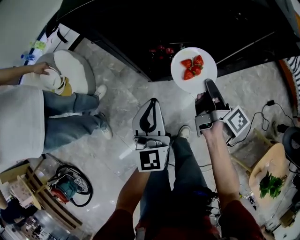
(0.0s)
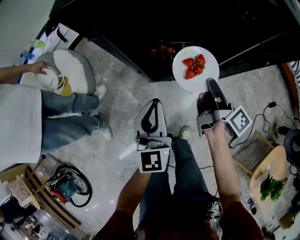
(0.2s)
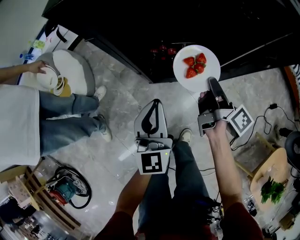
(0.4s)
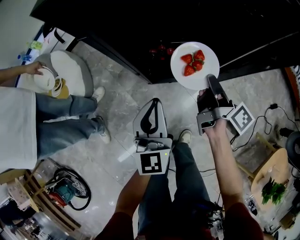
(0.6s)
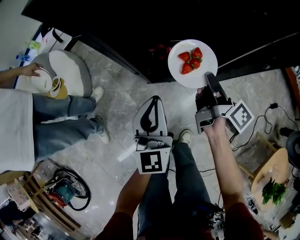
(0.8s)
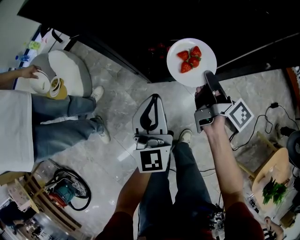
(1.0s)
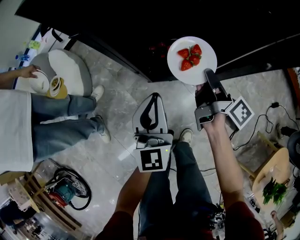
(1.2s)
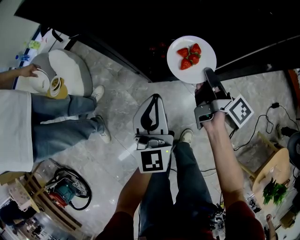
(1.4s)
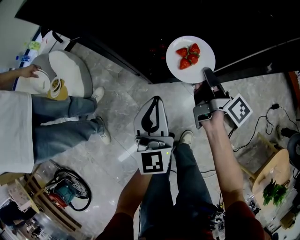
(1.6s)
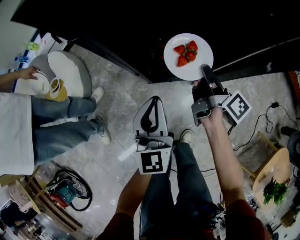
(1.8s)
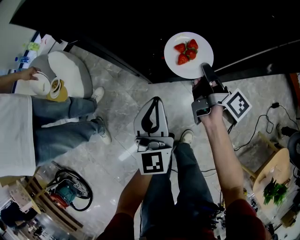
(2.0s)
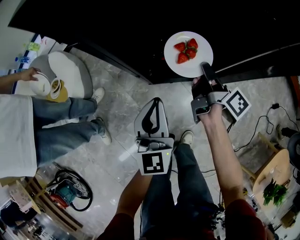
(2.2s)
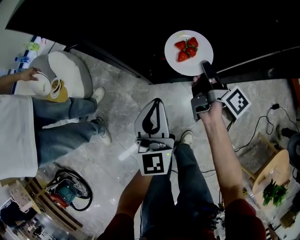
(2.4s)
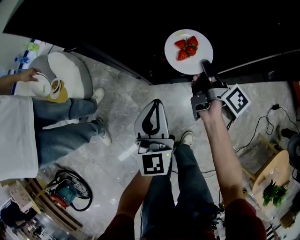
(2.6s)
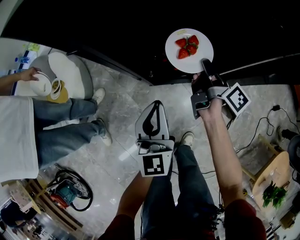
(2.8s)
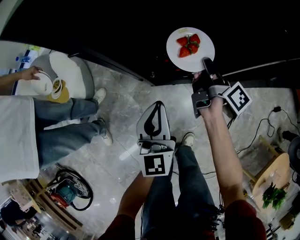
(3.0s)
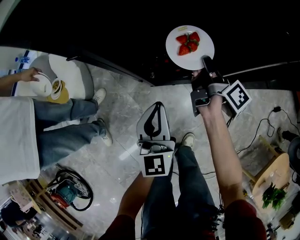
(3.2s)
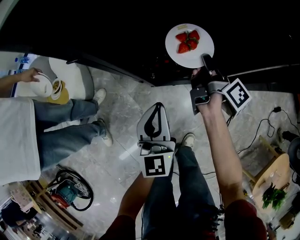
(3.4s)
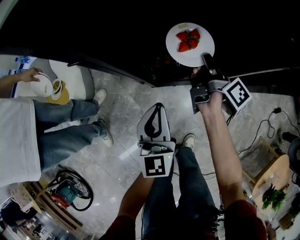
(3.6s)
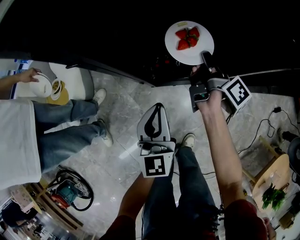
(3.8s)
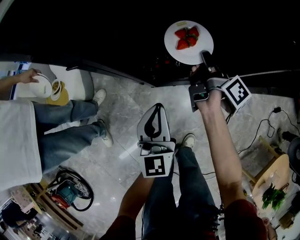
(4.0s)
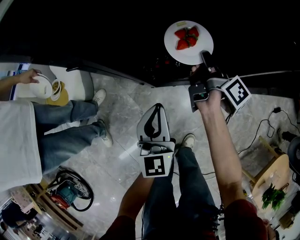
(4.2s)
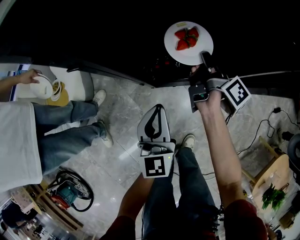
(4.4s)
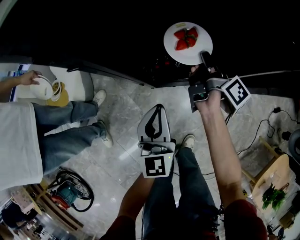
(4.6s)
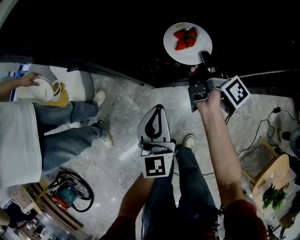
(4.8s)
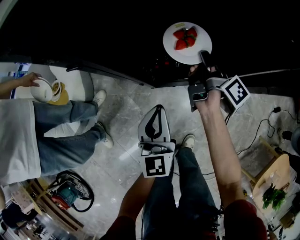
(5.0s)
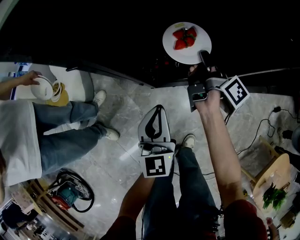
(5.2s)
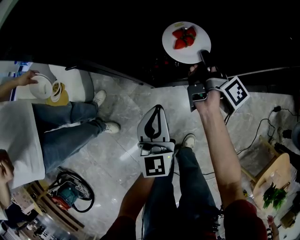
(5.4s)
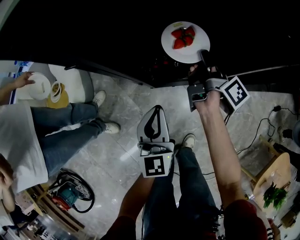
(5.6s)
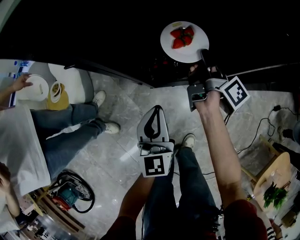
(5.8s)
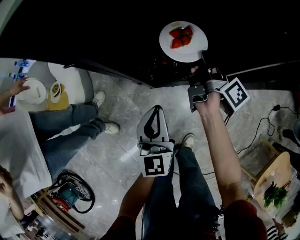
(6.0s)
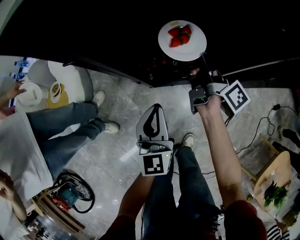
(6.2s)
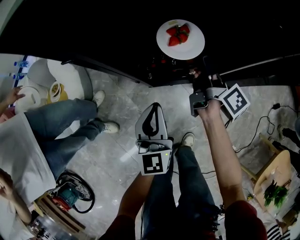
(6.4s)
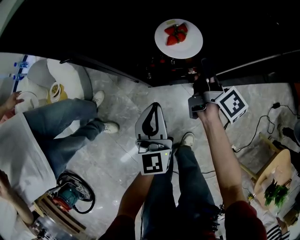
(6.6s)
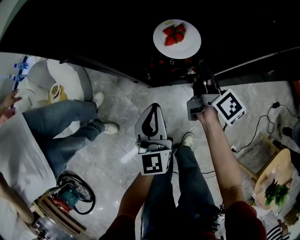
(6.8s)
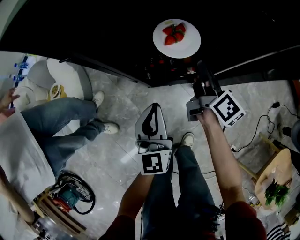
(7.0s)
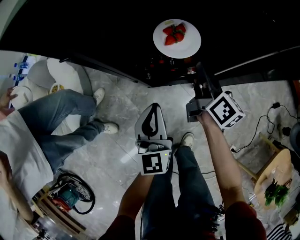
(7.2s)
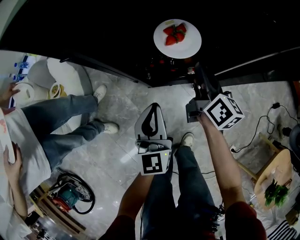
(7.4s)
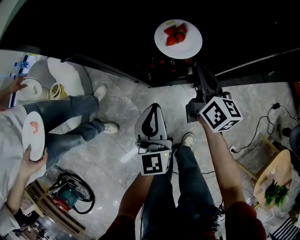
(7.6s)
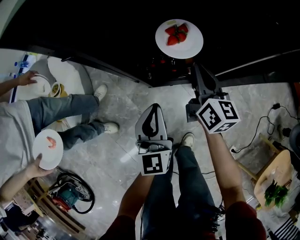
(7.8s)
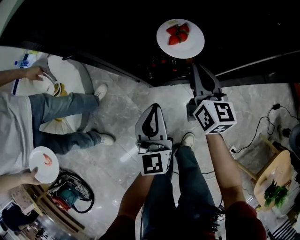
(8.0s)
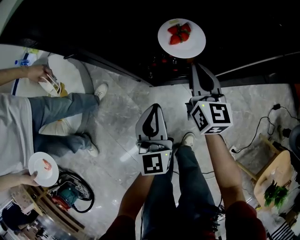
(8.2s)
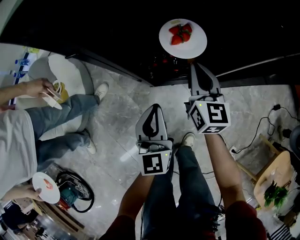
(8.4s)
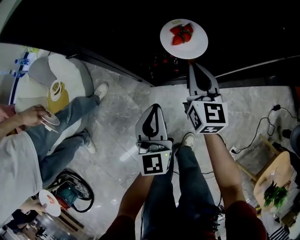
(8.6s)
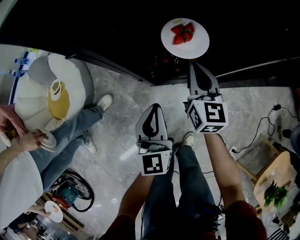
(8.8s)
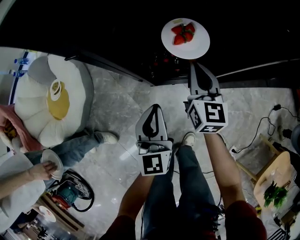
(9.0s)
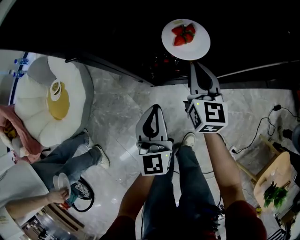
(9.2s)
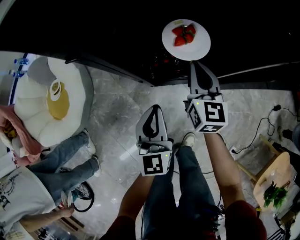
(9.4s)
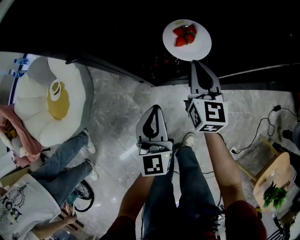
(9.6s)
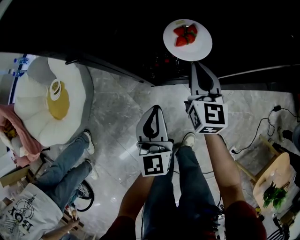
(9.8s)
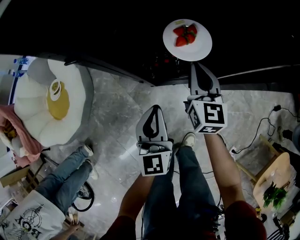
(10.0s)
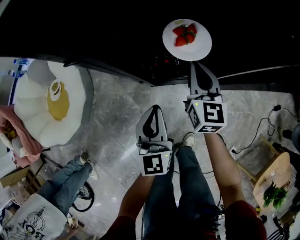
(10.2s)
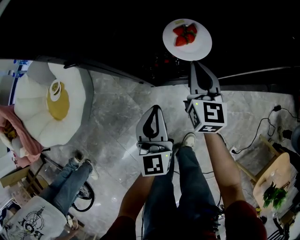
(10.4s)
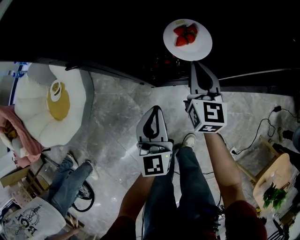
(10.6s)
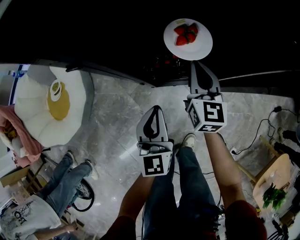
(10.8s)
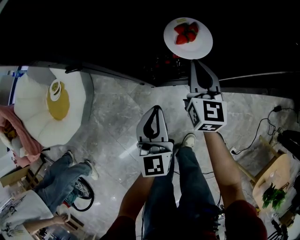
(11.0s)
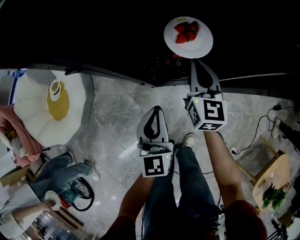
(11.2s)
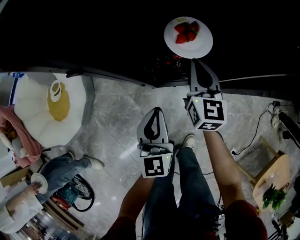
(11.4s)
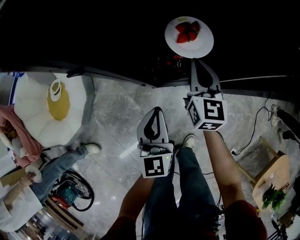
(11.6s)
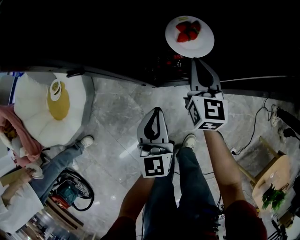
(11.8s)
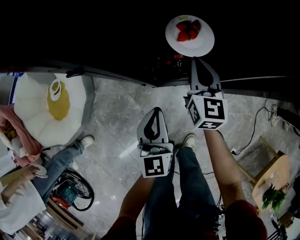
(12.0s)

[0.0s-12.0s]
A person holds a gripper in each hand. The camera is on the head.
0.0s to 1.6s: The left gripper shifts by roughly 5 cm, while the right gripper is displaced forward by some 5 cm.
1.6s to 3.0s: The right gripper travels forward by some 5 cm.
3.0s to 6.0s: The grippers move only a little.
6.0s to 7.6s: The right gripper shifts about 5 cm backward, and twists about 50 degrees counterclockwise, seen from behind.
7.6s to 9.0s: The right gripper rotates about 30 degrees.
9.0s to 10.4s: Both grippers stay put.
10.4s to 12.0s: The grippers stay close to where they were, moving slightly.

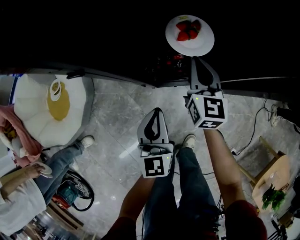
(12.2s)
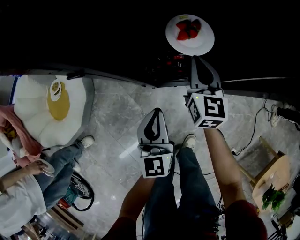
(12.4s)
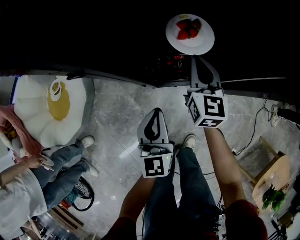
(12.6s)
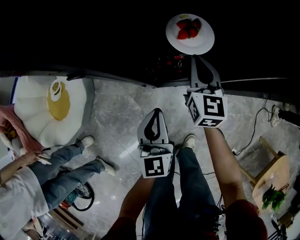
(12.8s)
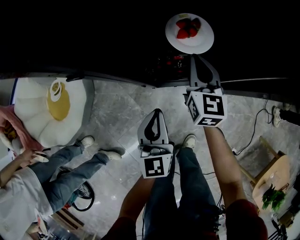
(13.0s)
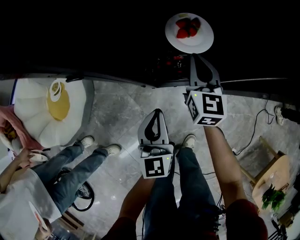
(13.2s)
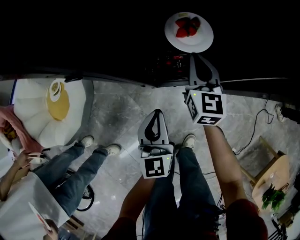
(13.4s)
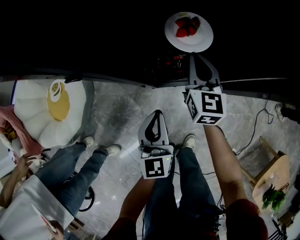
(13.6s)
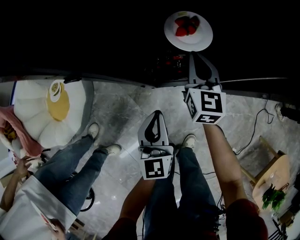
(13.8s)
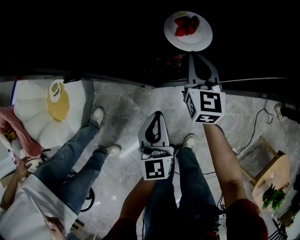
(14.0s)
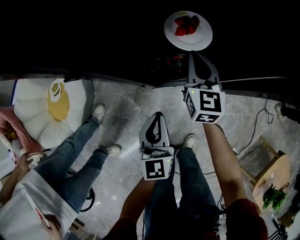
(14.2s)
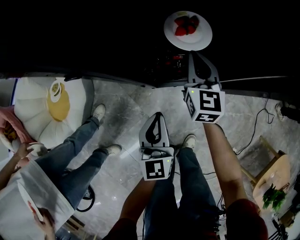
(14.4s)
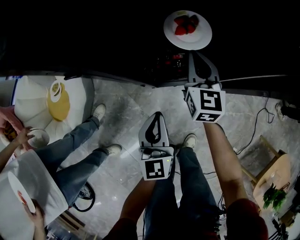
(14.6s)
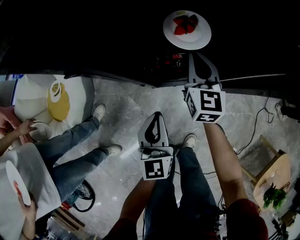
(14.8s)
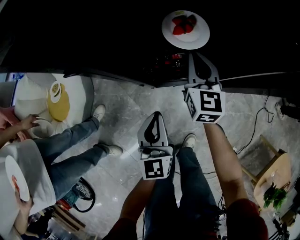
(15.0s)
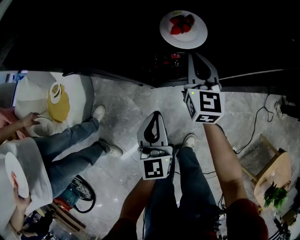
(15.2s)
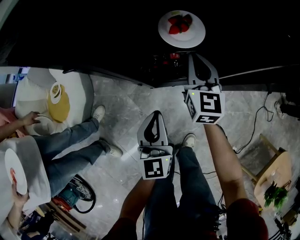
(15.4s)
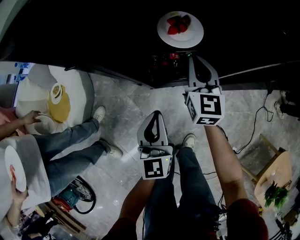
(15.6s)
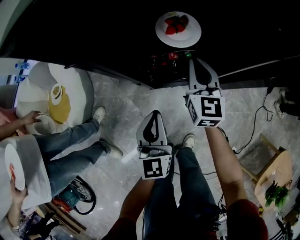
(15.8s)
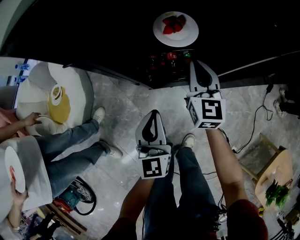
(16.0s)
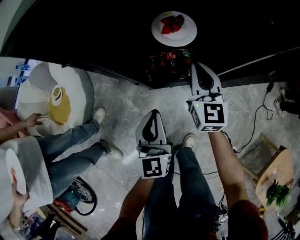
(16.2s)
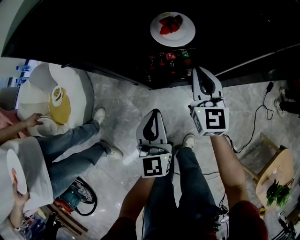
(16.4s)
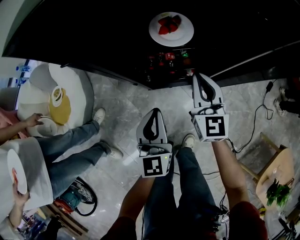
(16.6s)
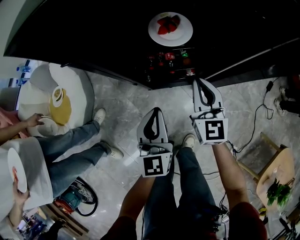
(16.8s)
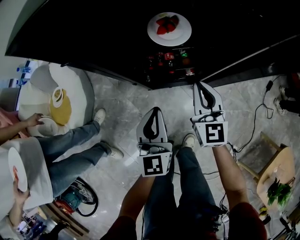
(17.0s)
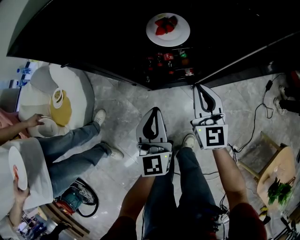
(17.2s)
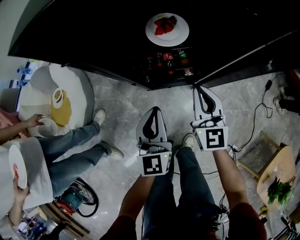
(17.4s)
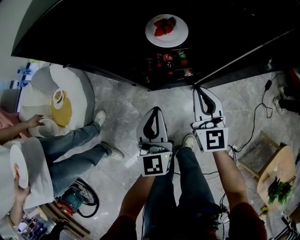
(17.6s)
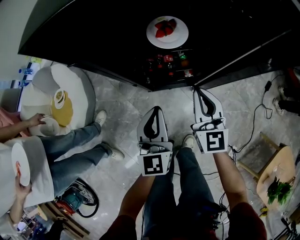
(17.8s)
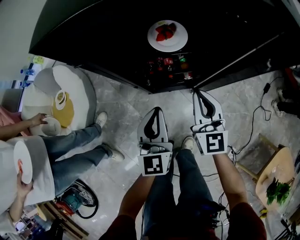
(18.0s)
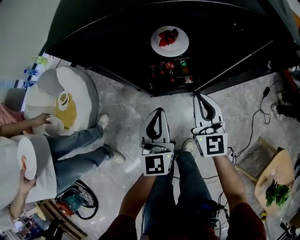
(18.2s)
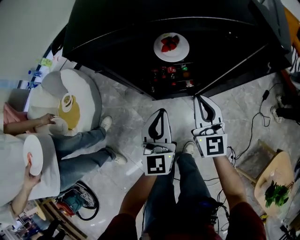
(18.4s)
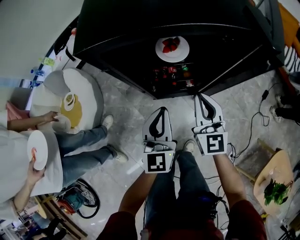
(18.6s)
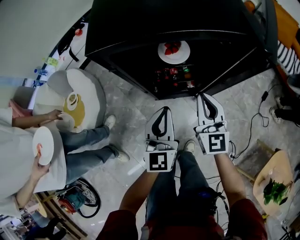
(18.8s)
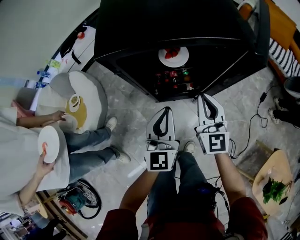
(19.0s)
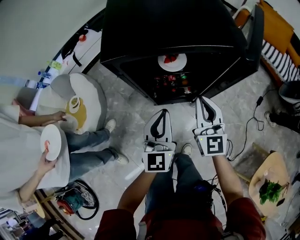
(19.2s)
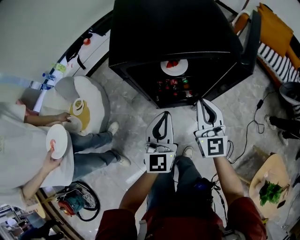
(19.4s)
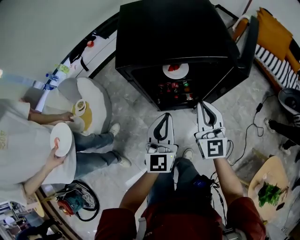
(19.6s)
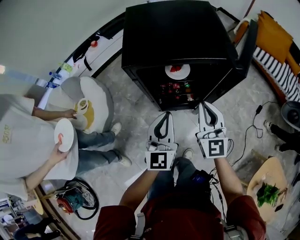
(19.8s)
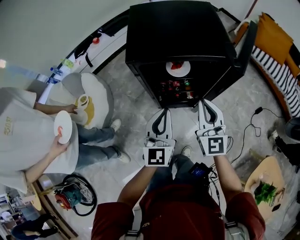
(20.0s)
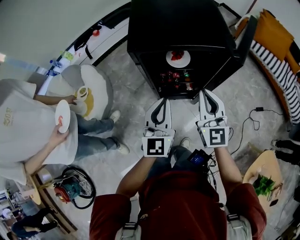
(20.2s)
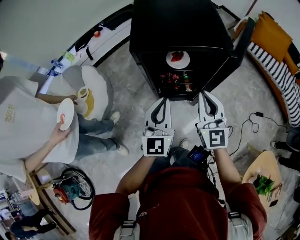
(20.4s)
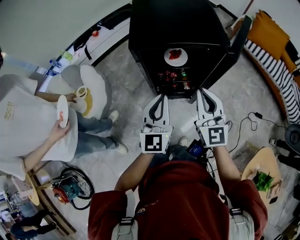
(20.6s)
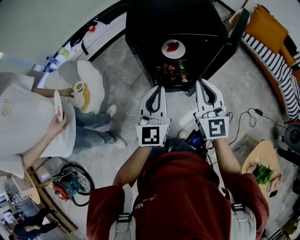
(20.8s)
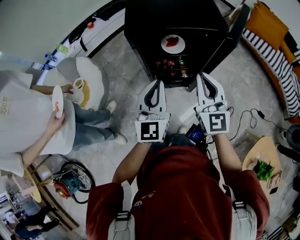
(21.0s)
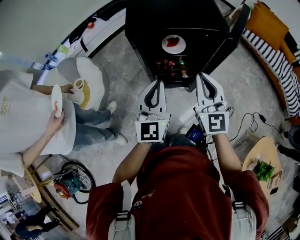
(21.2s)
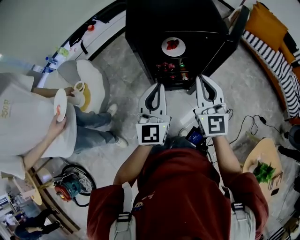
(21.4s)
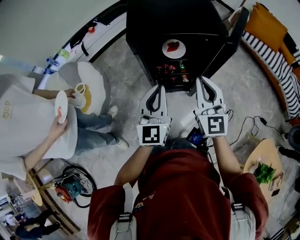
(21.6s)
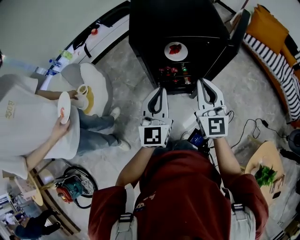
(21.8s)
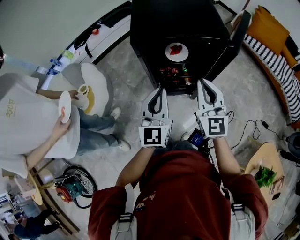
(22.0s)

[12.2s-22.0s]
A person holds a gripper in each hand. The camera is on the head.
12.2s to 13.6s: The grippers make only small movements.
13.6s to 15.0s: The two grippers keep their place.
15.0s to 16.4s: The right gripper travels backward by about 5 cm.
16.4s to 17.8s: The right gripper shifts some 10 cm backward.
17.8s to 19.2s: Both grippers travel together upward, approximately 15 cm.
19.2s to 20.6s: Both grippers travel together upward and backward, about 15 cm.
20.6s to 22.0s: Neither gripper changes place.

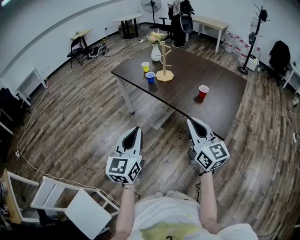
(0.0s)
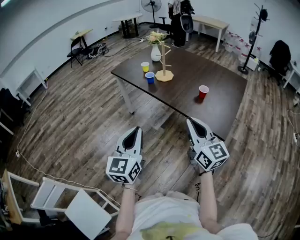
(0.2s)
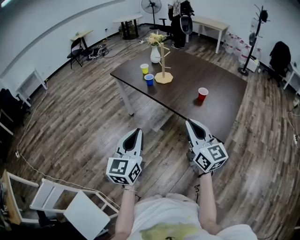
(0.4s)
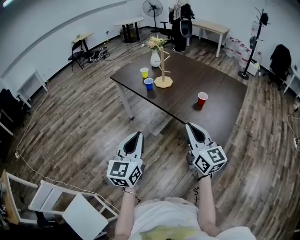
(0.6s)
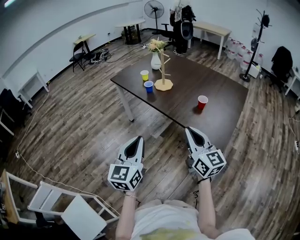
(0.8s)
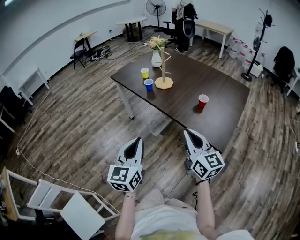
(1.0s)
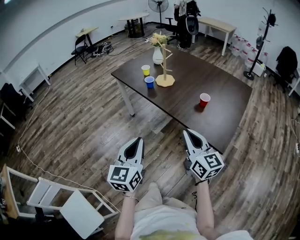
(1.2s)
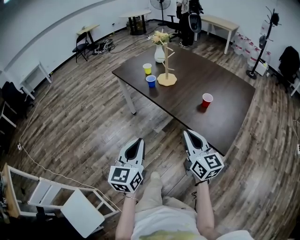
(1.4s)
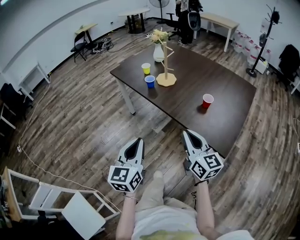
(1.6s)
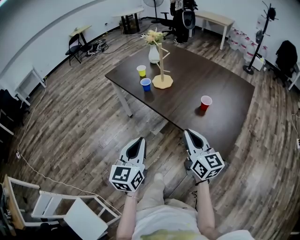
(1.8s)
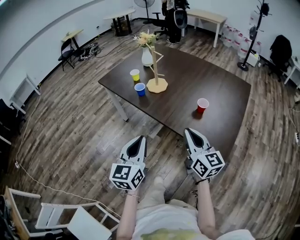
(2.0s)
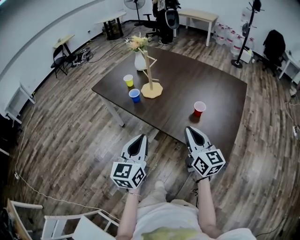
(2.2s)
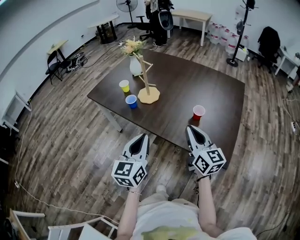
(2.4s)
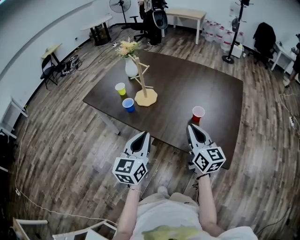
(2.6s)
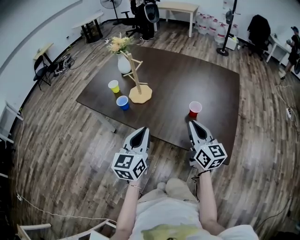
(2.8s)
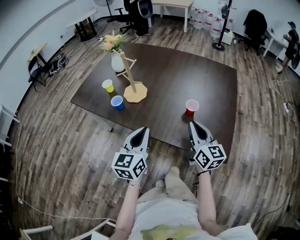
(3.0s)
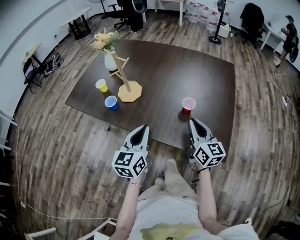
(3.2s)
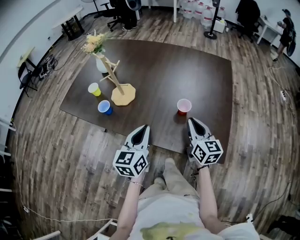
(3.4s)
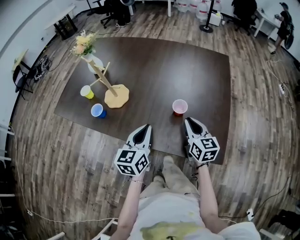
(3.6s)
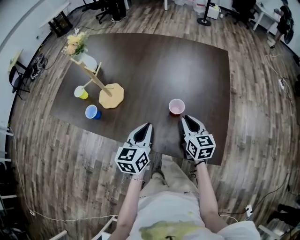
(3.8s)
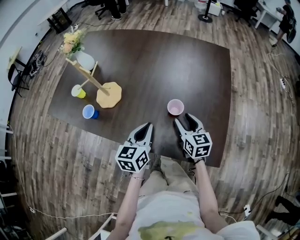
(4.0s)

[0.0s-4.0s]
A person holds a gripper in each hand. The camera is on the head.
0.0s to 1.4s: The right gripper travels forward and downward by about 10 cm; the left gripper changes place by approximately 10 cm.
1.4s to 2.6s: Both grippers travel together forward, some 20 cm. The right gripper turns by about 20 degrees.
2.6s to 4.0s: The right gripper is displaced downward, forward and to the right by about 20 cm, turns by some 30 degrees, and opens its fingers; the left gripper heads forward, downward and to the right, covering roughly 25 cm, and changes its angle by roughly 20 degrees.
